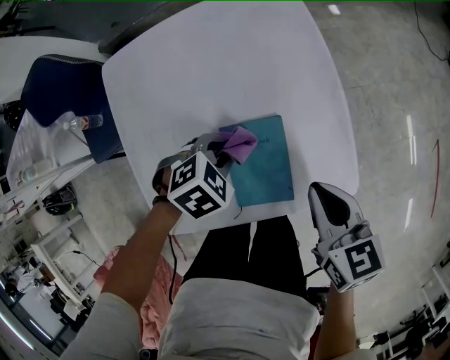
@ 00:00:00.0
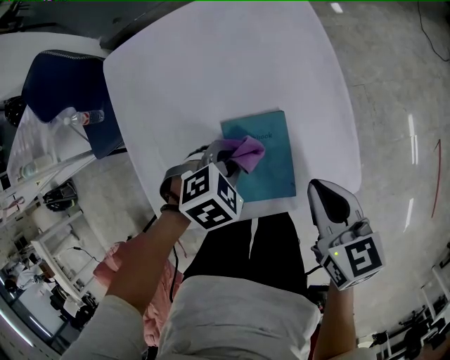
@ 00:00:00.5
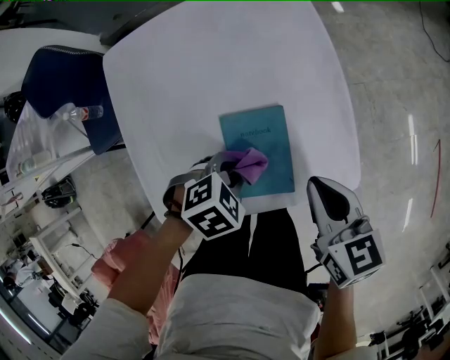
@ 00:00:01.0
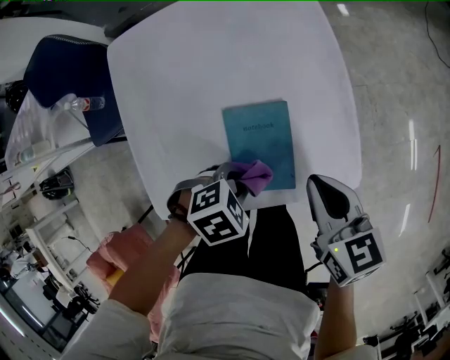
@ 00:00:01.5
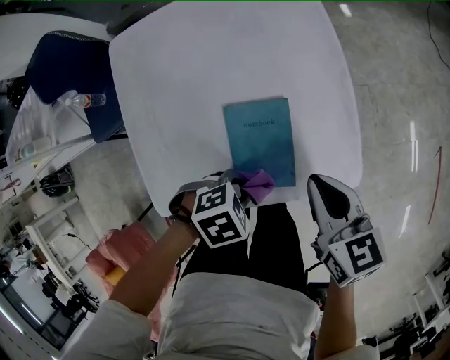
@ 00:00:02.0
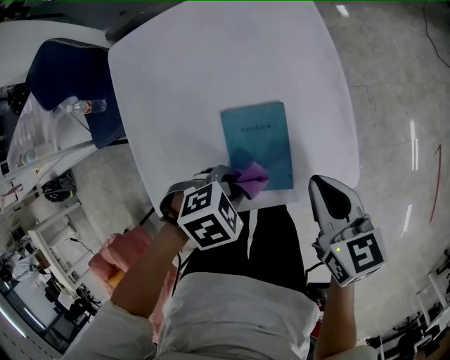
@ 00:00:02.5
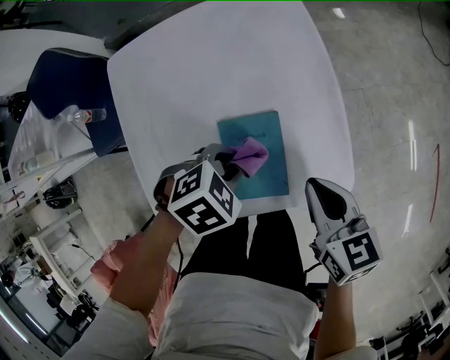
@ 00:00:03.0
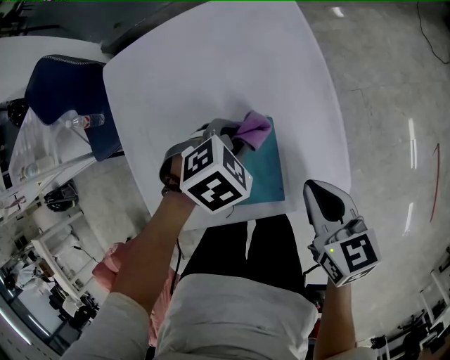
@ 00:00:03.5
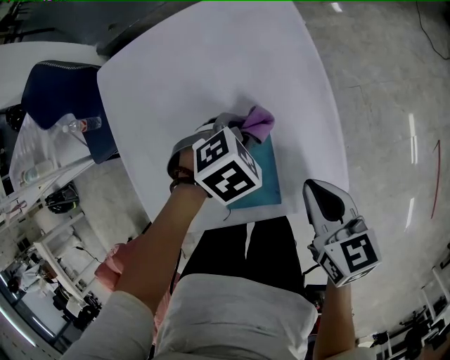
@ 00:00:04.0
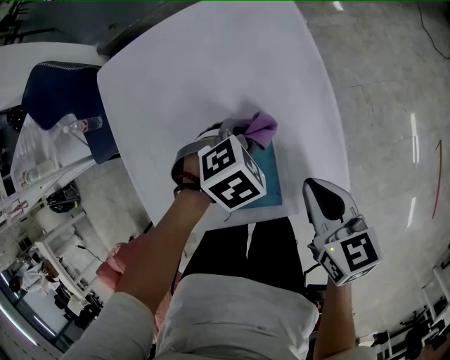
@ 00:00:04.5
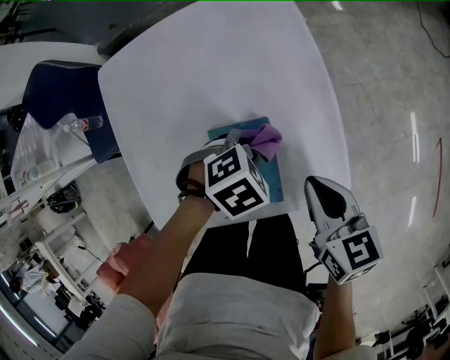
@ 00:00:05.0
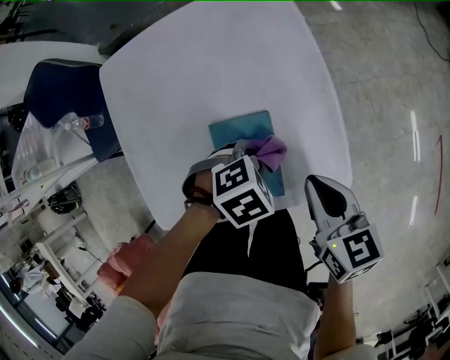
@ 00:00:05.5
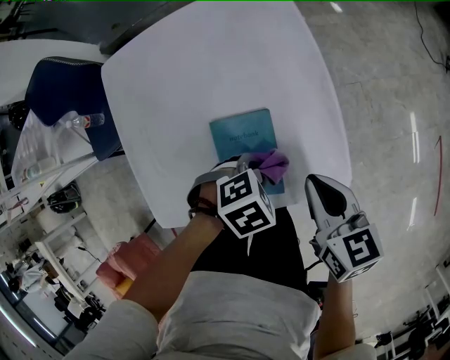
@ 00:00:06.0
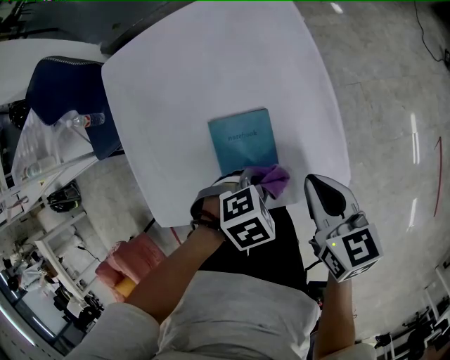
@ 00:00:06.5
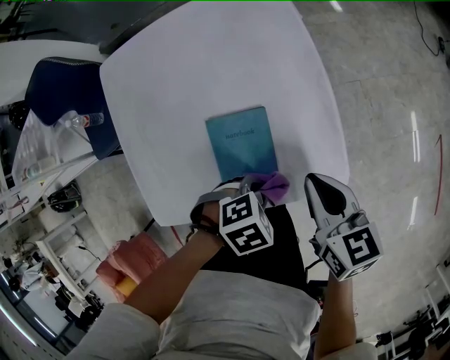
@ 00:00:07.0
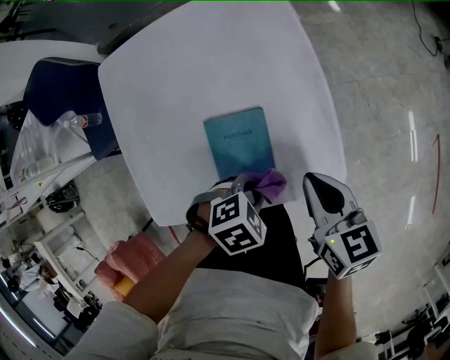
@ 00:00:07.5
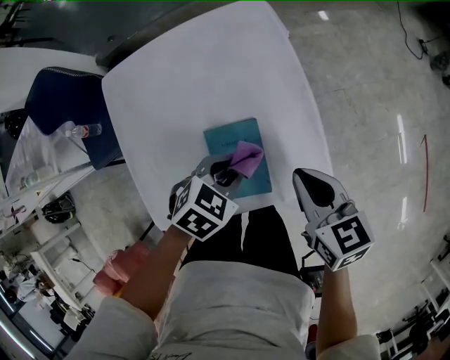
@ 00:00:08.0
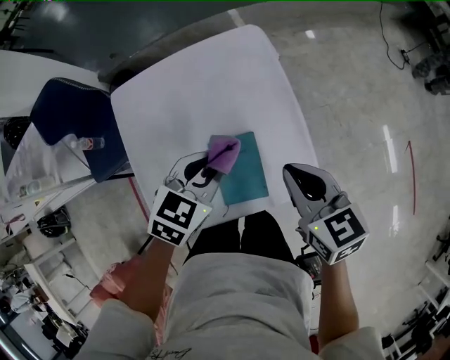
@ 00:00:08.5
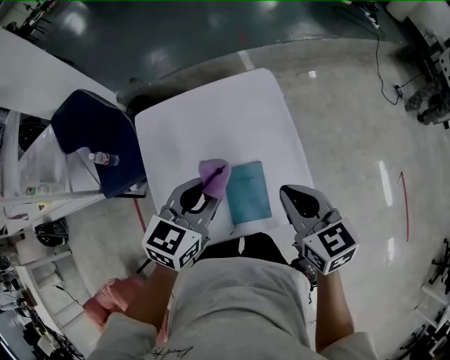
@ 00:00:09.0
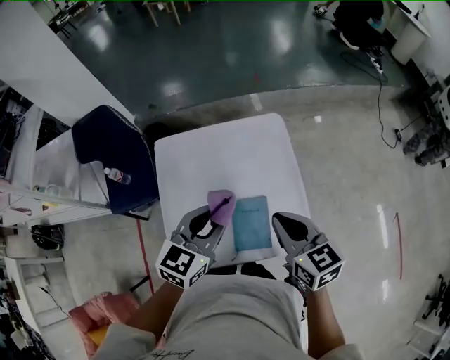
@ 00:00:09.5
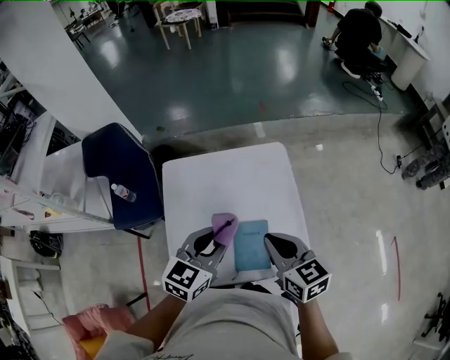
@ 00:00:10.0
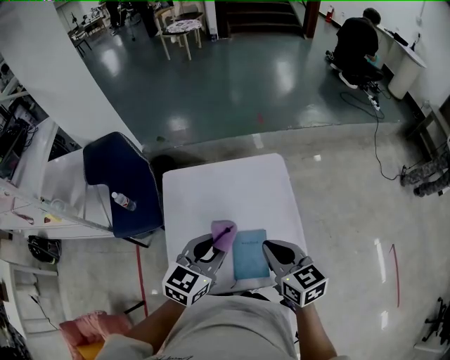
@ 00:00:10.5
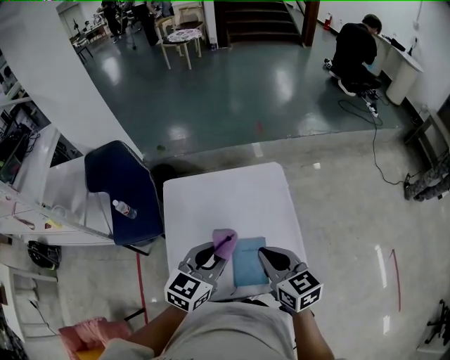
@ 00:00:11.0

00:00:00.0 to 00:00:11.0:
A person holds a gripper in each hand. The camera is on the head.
00:00:00.0 to 00:00:02.0: The left gripper moves approximately 15 cm.
00:00:02.0 to 00:00:03.5: The left gripper shifts by approximately 20 cm, and turns by roughly 20 degrees.
00:00:03.5 to 00:00:05.5: The left gripper ends up approximately 10 cm from where it was.
00:00:05.5 to 00:00:07.5: The left gripper moves about 10 cm.
00:00:07.5 to 00:00:09.0: The left gripper is displaced upward by approximately 25 cm, and tips its fingers upward by about 40 degrees. Meanwhile the right gripper travels upward by roughly 15 cm.
00:00:09.0 to 00:00:11.0: The left gripper changes place by some 5 cm. The right gripper is displaced to the left by roughly 5 cm.

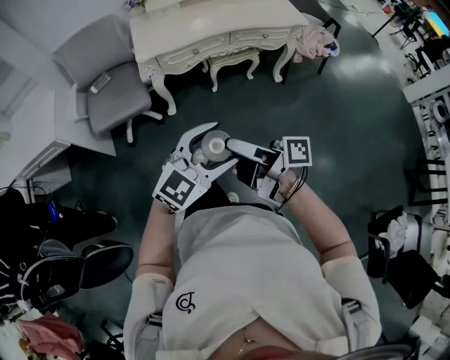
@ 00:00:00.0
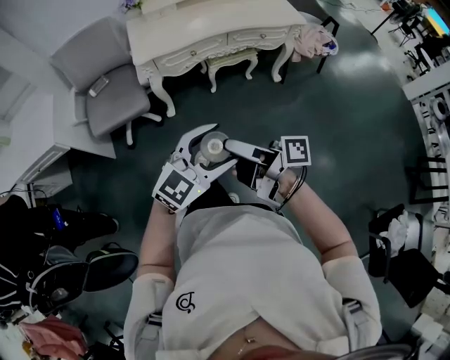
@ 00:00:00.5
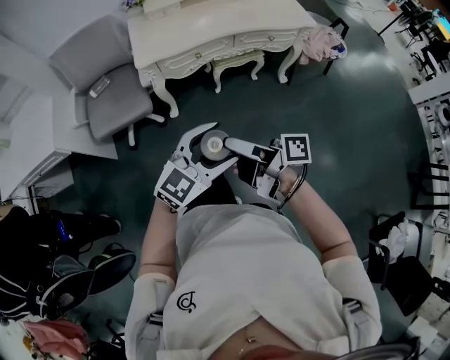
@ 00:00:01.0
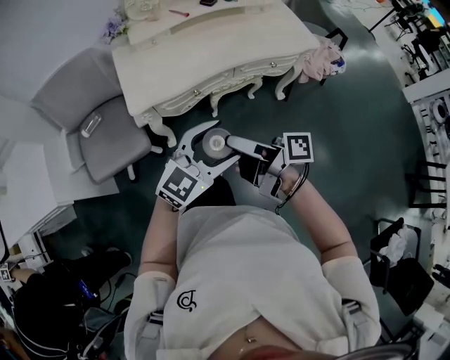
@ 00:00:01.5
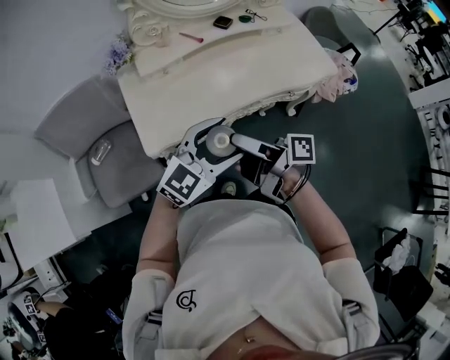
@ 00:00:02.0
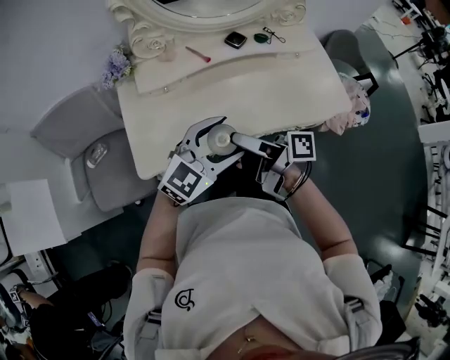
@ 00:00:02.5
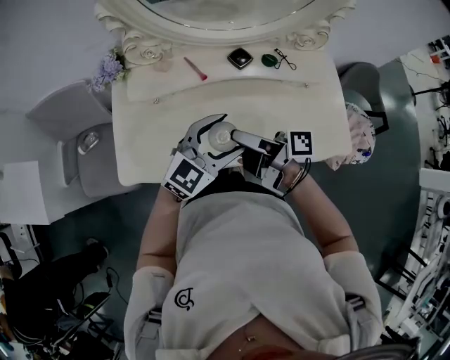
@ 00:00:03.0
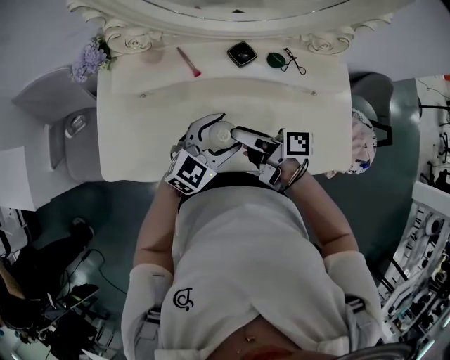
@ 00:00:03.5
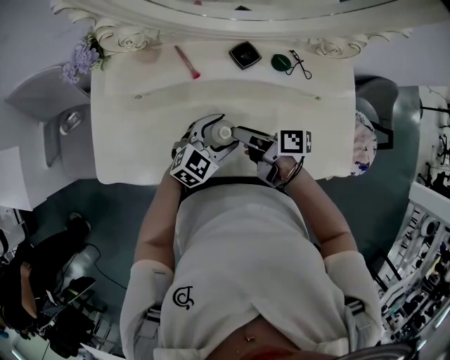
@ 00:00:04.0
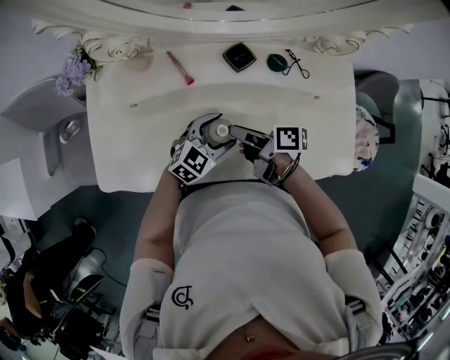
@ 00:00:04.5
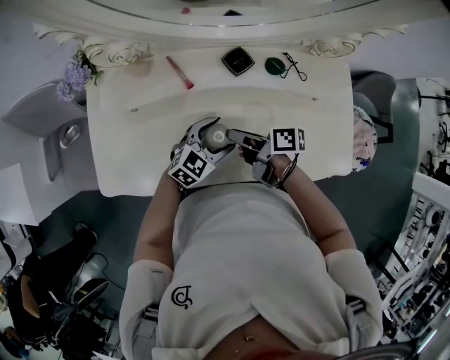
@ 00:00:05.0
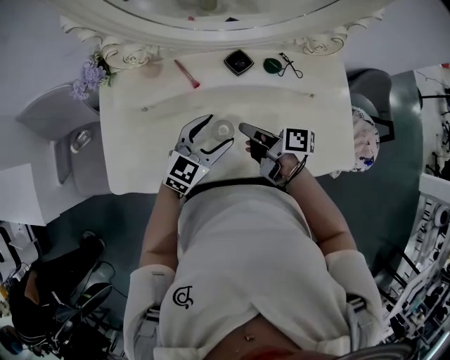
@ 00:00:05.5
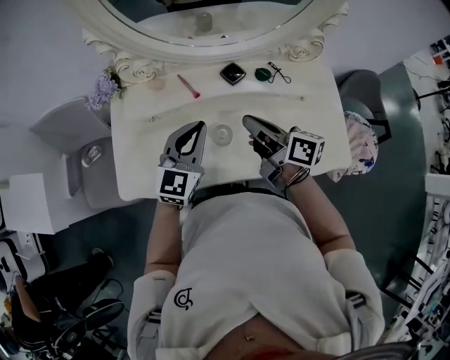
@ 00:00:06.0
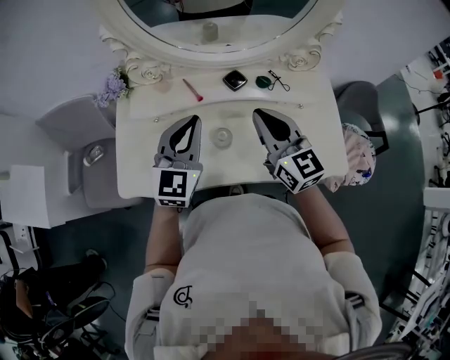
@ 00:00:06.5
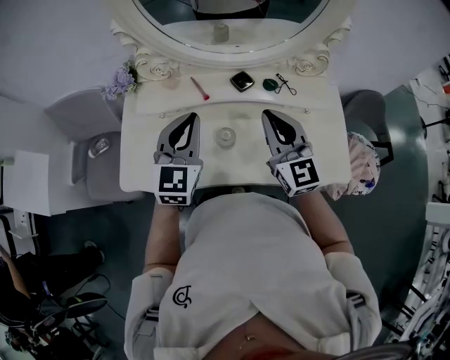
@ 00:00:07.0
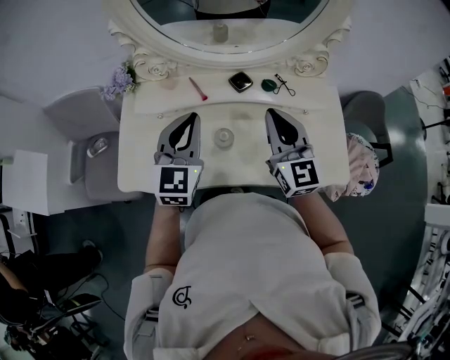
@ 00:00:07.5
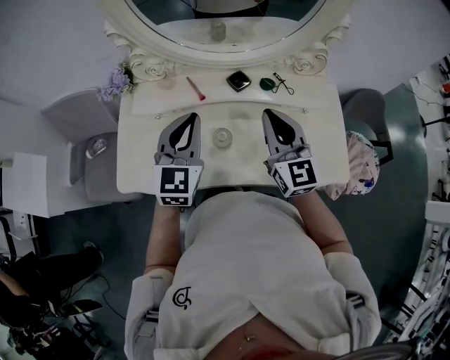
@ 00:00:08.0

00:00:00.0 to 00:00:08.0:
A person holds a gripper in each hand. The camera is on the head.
00:00:00.0 to 00:00:02.0: The pair of grippers is taken forward, approximately 50 cm.
00:00:02.0 to 00:00:04.0: Both grippers move forward, downward and to the right, roughly 40 cm. The left gripper turns by about 30 degrees. Meanwhile the right gripper rotates approximately 40 degrees, and closes.
00:00:04.0 to 00:00:06.0: The left gripper shifts about 20 cm upward and to the left, turns by some 30 degrees, and closes up. The right gripper goes some 15 cm upward, swivels about 30 degrees, and closes its fingers.
00:00:06.0 to 00:00:08.0: Both grippers travel together upward, roughly 5 cm. The right gripper rolls counterclockwise, seen from behind, by some 60 degrees.

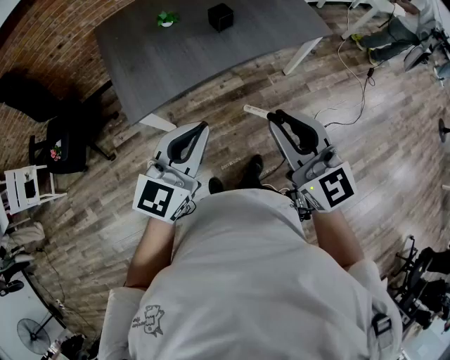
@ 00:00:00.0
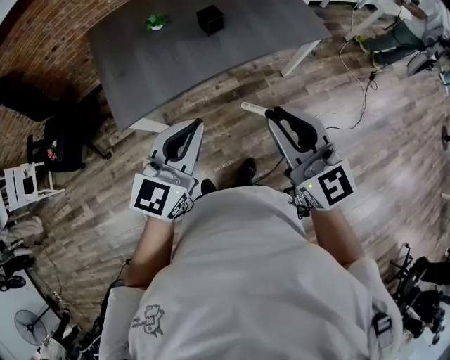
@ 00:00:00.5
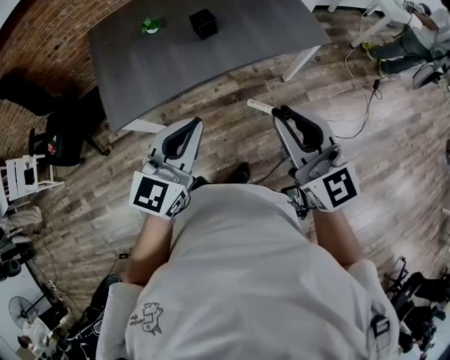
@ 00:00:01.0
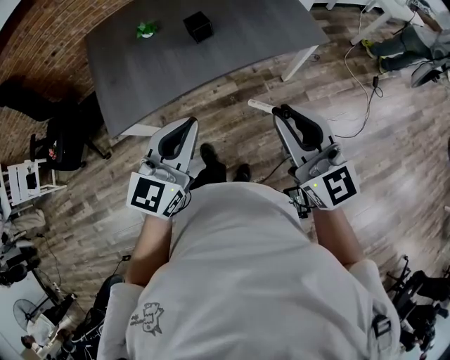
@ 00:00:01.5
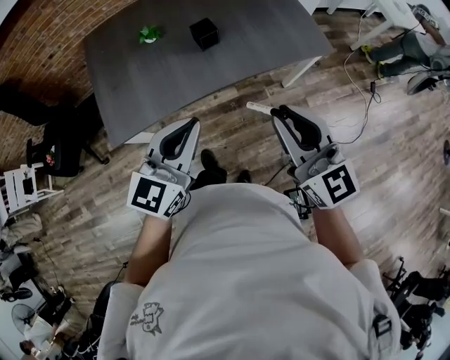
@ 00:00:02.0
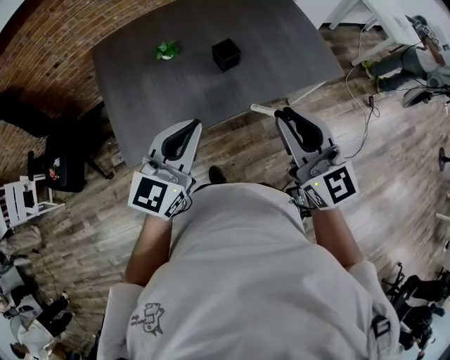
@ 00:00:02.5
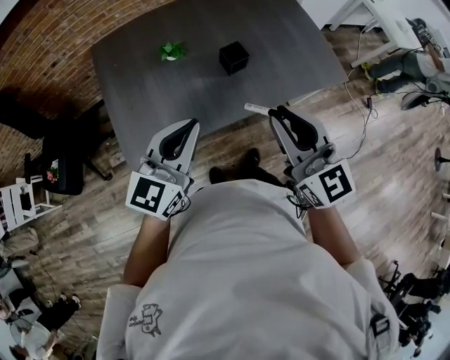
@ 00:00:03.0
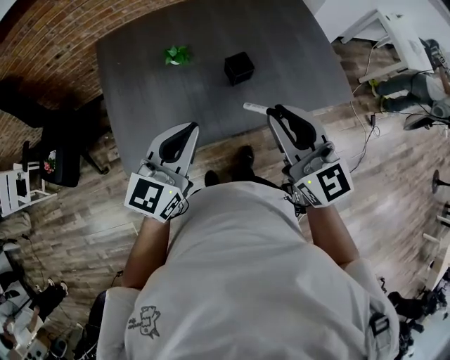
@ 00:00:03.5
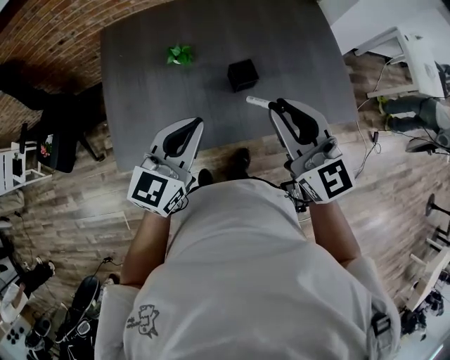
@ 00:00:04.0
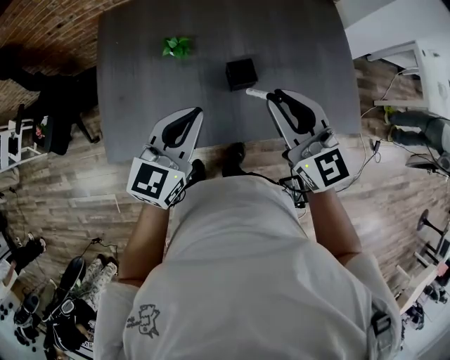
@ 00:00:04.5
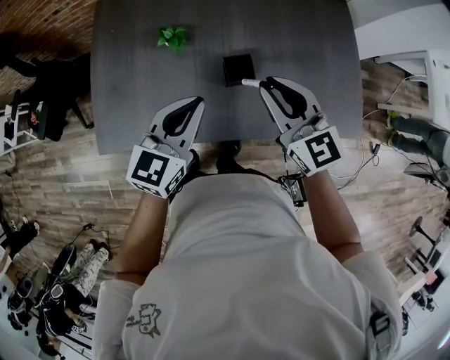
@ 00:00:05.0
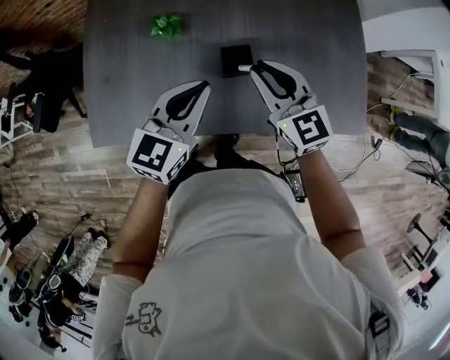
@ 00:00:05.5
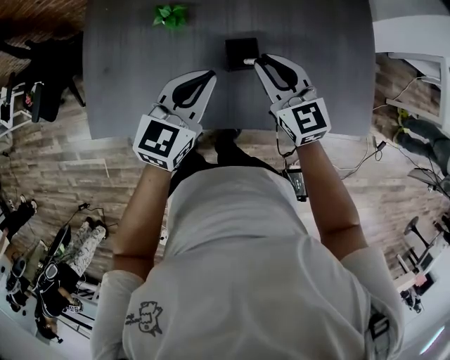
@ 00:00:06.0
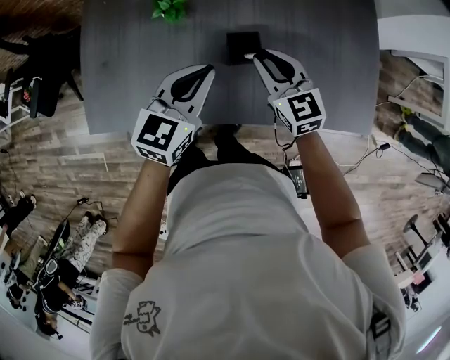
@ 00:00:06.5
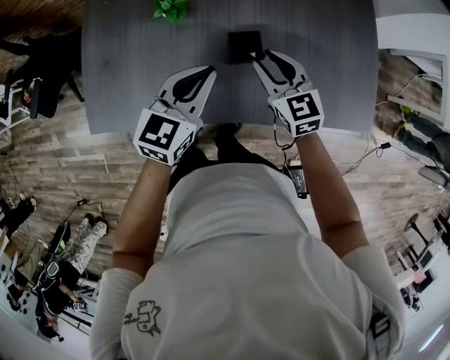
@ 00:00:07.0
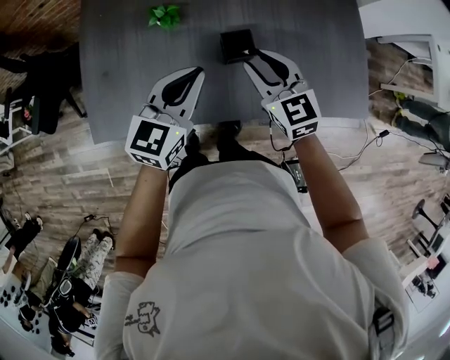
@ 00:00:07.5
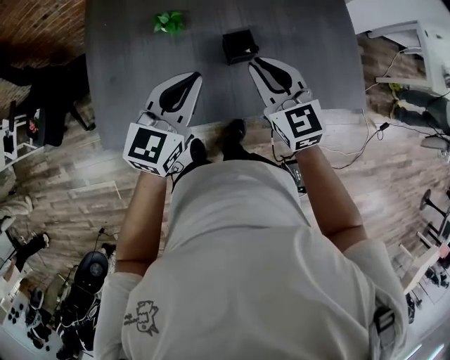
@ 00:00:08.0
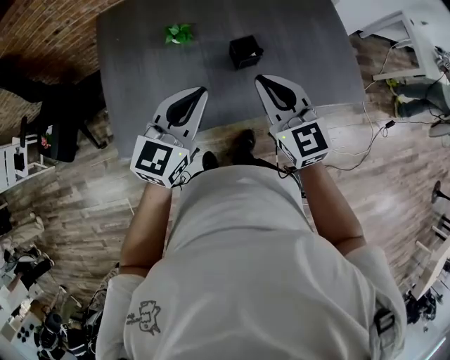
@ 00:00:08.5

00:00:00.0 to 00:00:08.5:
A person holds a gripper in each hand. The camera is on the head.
00:00:00.0 to 00:00:02.0: Both grippers travel together forward and to the right, about 20 cm.
00:00:02.0 to 00:00:04.0: The two grippers go roughly 25 cm forward and to the left.
00:00:04.0 to 00:00:06.5: The right gripper travels downward and forward by some 30 cm, and swivels about 20 degrees; the left gripper travels downward, forward and to the right by about 20 cm.
00:00:06.5 to 00:00:08.5: The right gripper travels upward and backward by about 20 cm. The left gripper moves upward, backward and to the left, some 15 cm.
